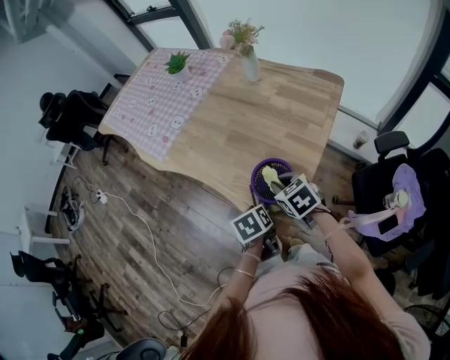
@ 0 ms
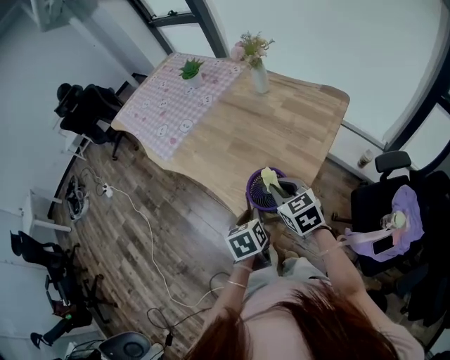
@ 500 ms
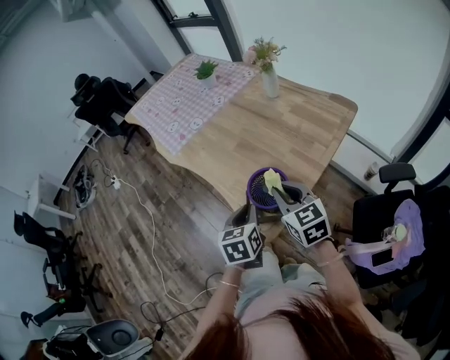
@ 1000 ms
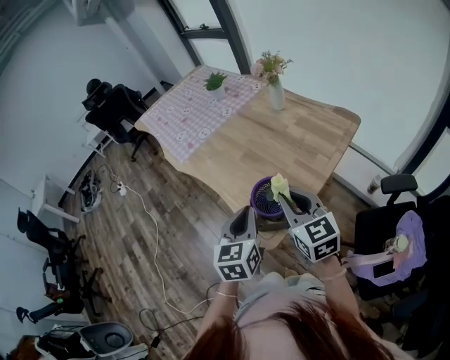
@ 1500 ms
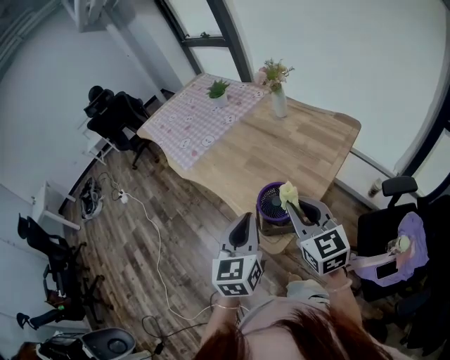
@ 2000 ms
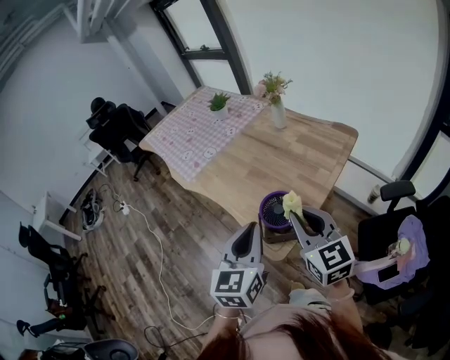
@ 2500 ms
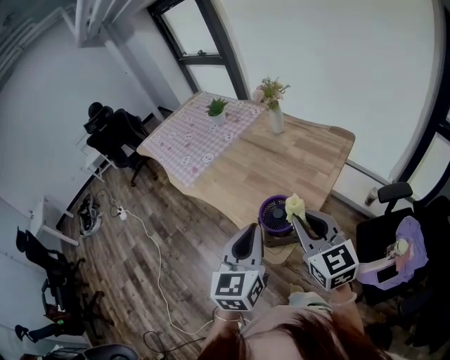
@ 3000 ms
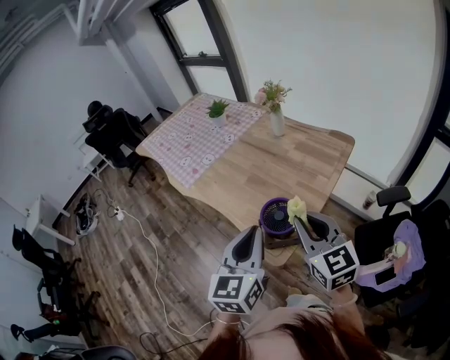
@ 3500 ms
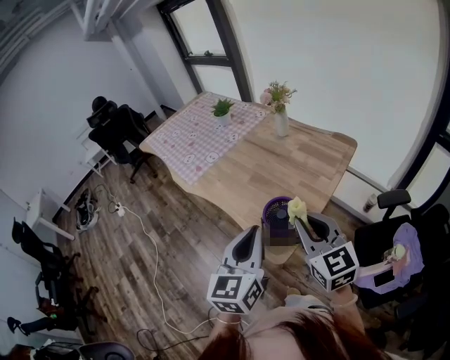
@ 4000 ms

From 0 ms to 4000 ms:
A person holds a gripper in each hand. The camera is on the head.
From 0 ms to 2000 ms: The right gripper heads upward and backward, covering some 20 cm, and tilts its fingers about 40 degrees upward. Meanwhile the left gripper heads upward, covering approximately 25 cm, tips its fingers upward by some 40 degrees, and closes up.
From 2000 ms to 4000 ms: Both grippers travel together upward, roughly 5 cm.

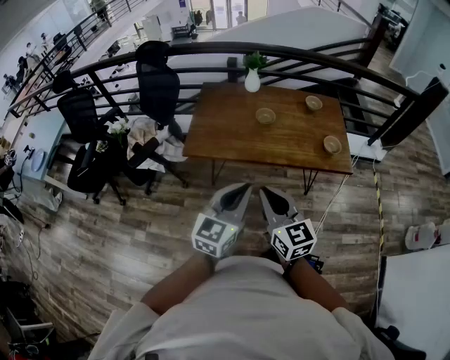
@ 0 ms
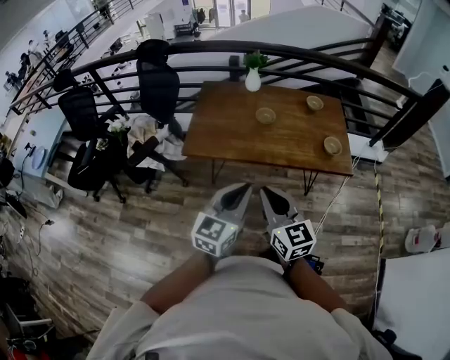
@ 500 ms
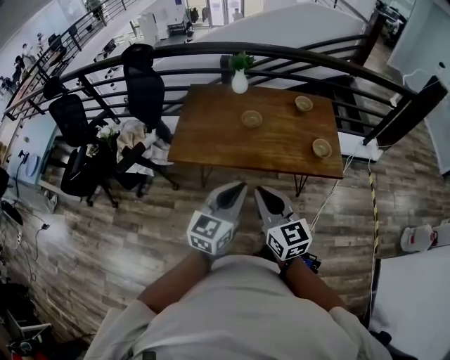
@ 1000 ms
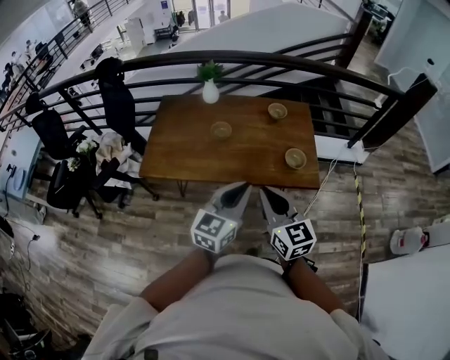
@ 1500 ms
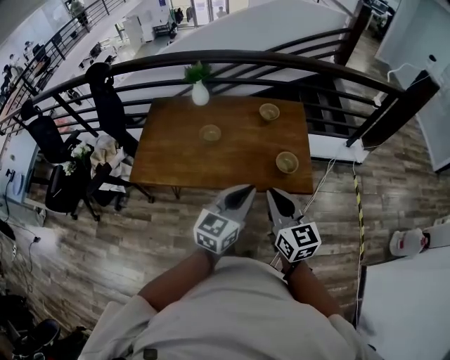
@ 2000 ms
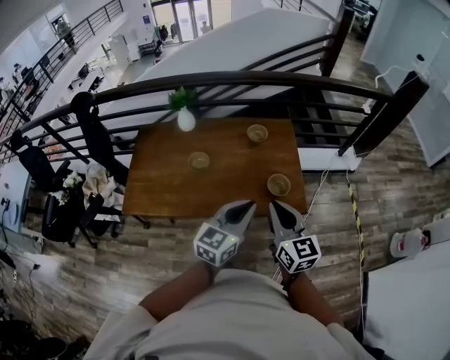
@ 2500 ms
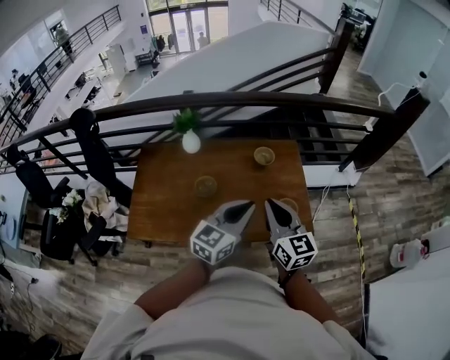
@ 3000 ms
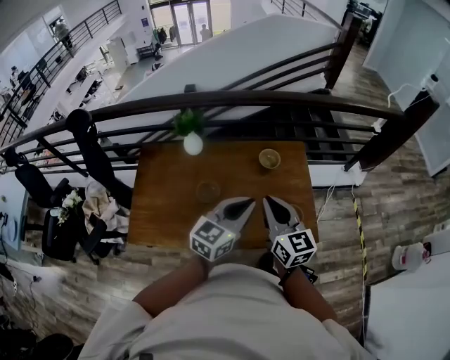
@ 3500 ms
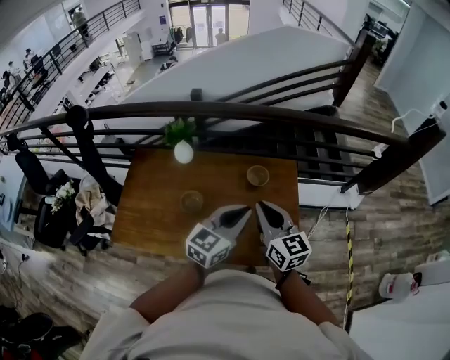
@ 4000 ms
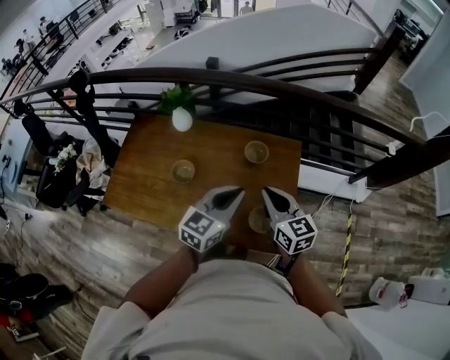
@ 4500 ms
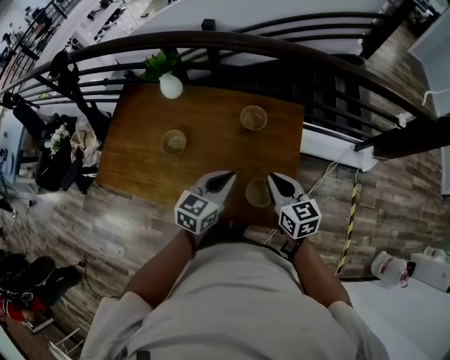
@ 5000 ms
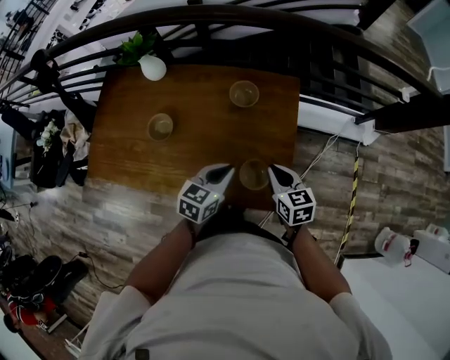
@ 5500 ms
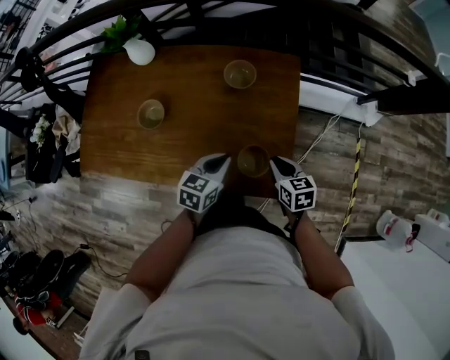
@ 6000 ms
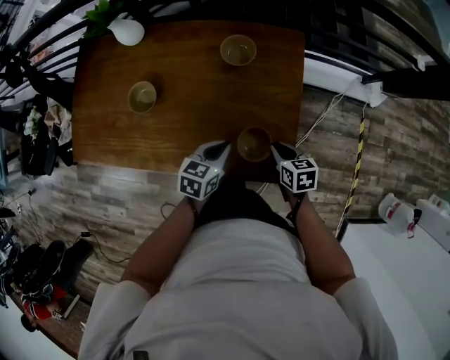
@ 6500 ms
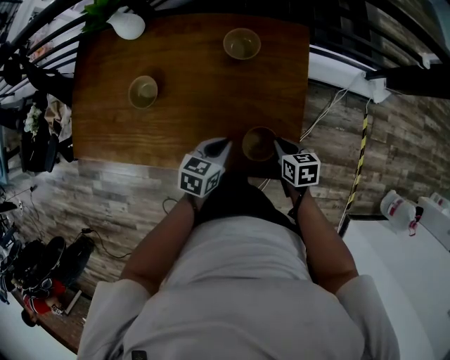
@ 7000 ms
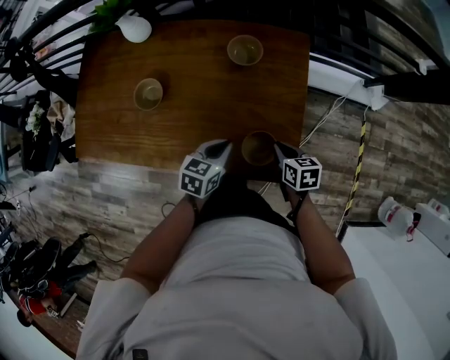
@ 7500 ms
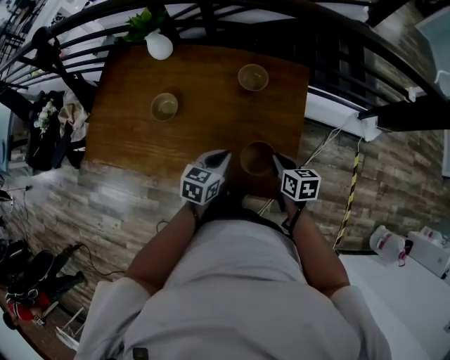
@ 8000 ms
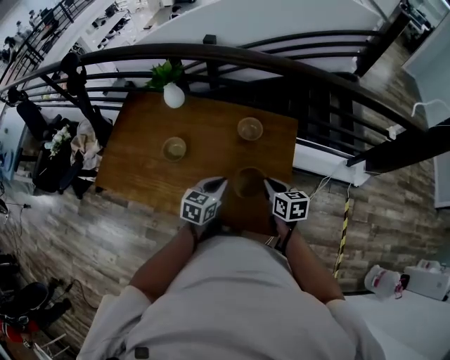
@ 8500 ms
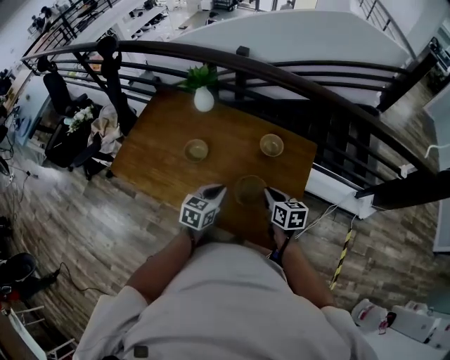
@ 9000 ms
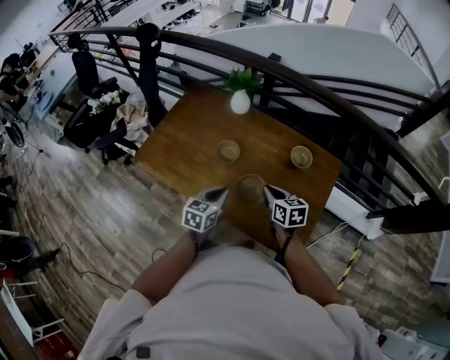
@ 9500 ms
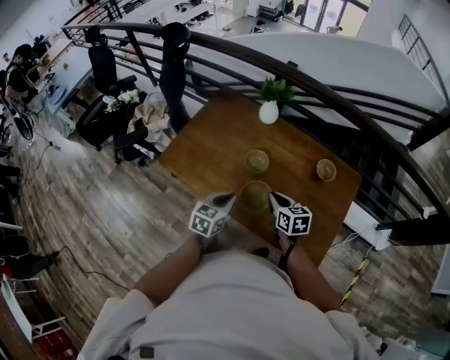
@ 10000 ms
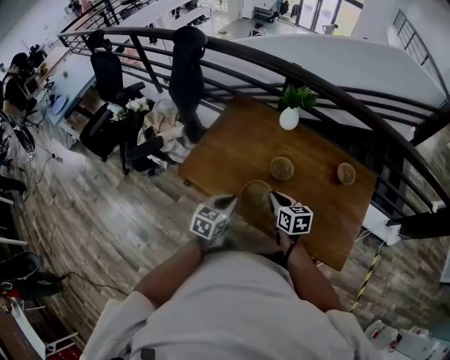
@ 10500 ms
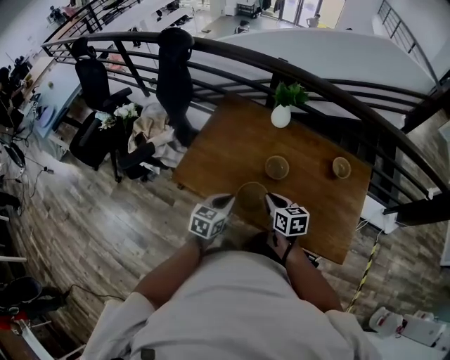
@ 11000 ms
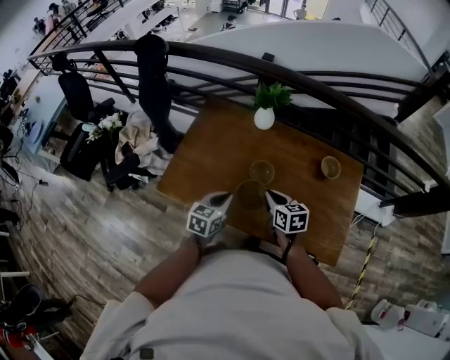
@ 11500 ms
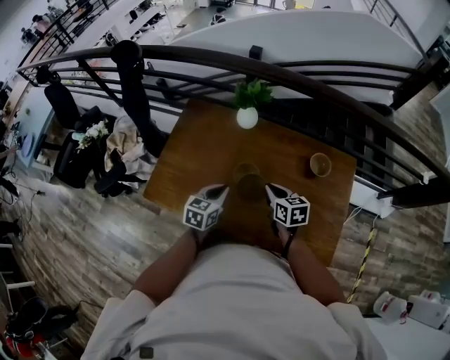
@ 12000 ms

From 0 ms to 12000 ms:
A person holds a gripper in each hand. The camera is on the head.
From 0 ms to 2000 ms: Both grippers move to the right and forward, roughly 40 cm.
From 2000 ms to 4000 ms: Both grippers travel together forward, about 30 cm.
From 4000 ms to 6000 ms: The right gripper moves downward and to the right, approximately 40 cm, and tilts its fingers approximately 40 degrees downward; the left gripper travels downward by about 30 cm, and rotates some 30 degrees.
From 6000 ms to 8000 ms: The right gripper goes downward and returns, approximately 10 cm each way.
From 8000 ms to 10000 ms: The left gripper shifts about 30 cm to the left, and changes its angle by roughly 20 degrees, while the right gripper goes roughly 35 cm to the left and upward, and changes its angle by about 30 degrees.
From 10000 ms to 12000 ms: Both grippers travel together forward, about 15 cm. The right gripper reaches roughly 15 cm to the left, then returns. The left gripper moves approximately 15 cm to the left and comes back.

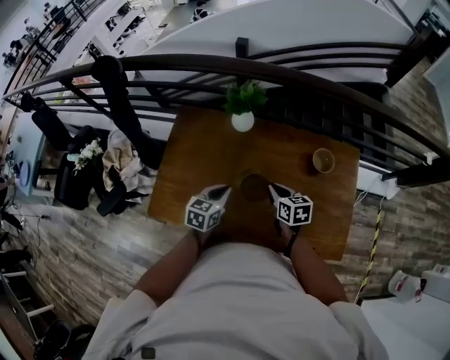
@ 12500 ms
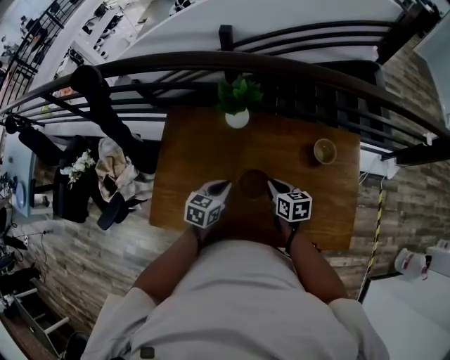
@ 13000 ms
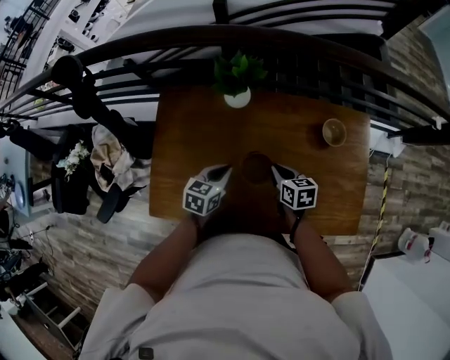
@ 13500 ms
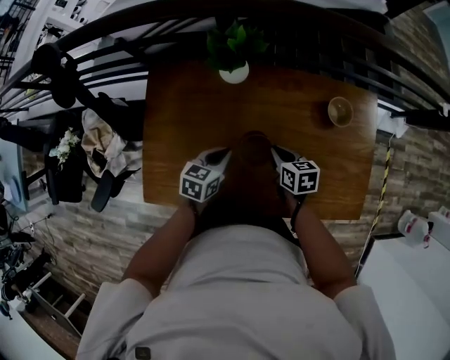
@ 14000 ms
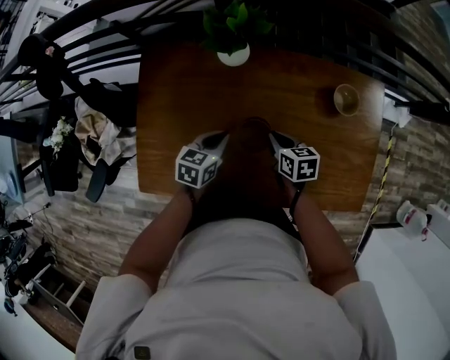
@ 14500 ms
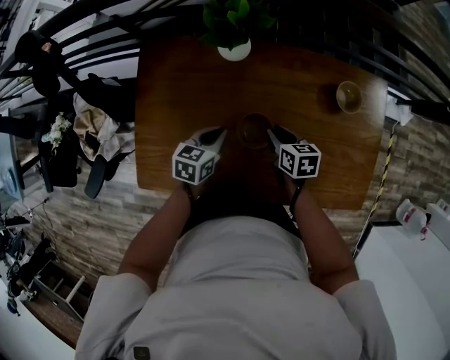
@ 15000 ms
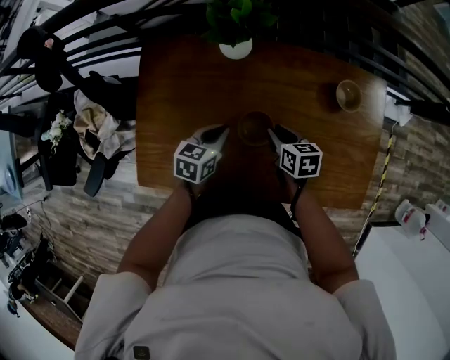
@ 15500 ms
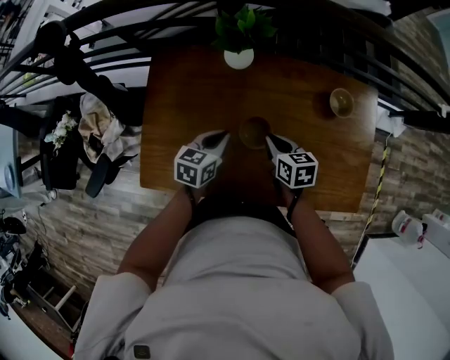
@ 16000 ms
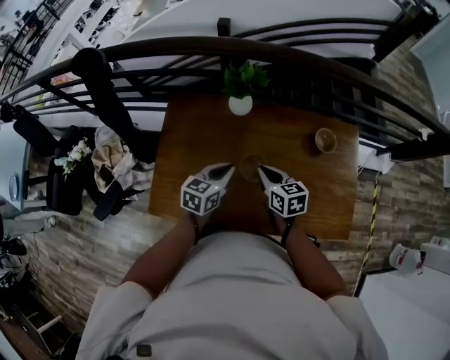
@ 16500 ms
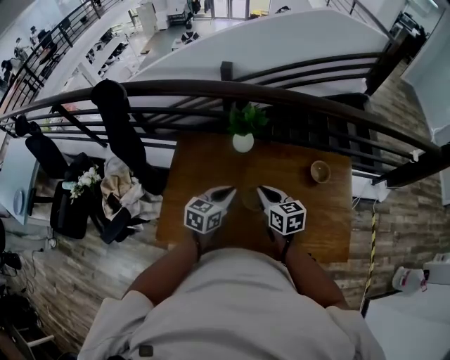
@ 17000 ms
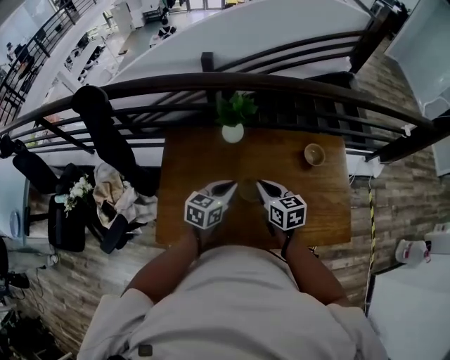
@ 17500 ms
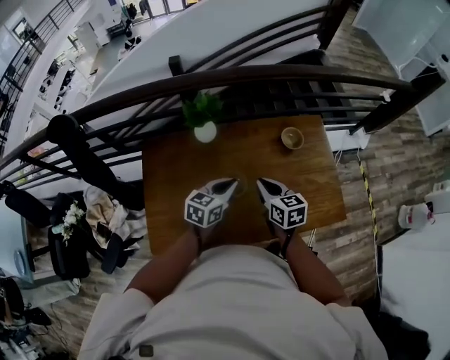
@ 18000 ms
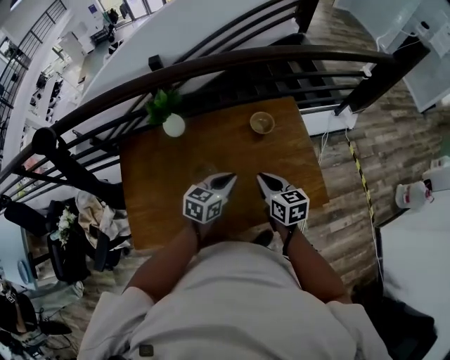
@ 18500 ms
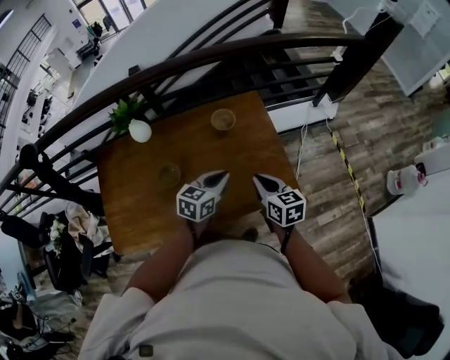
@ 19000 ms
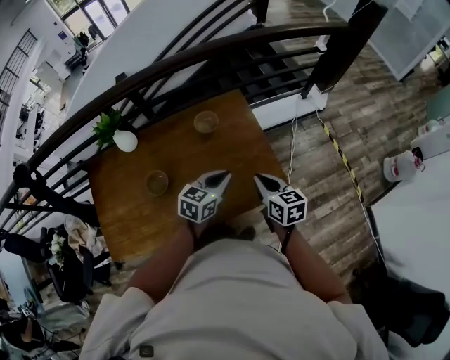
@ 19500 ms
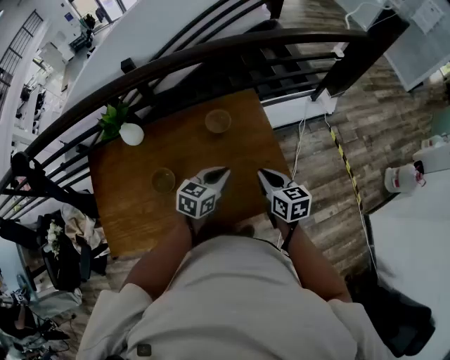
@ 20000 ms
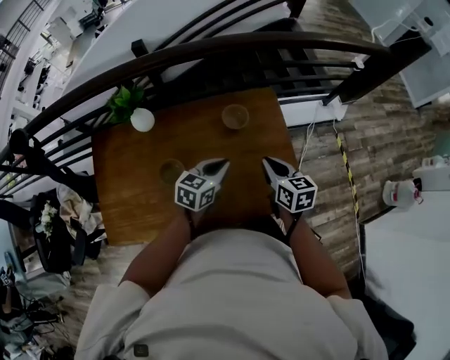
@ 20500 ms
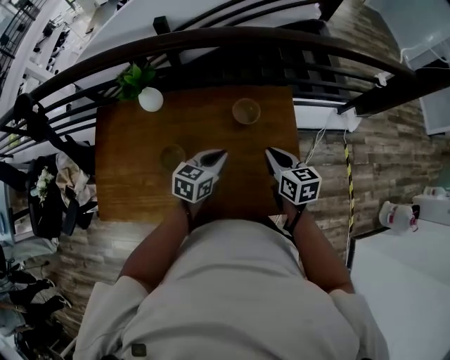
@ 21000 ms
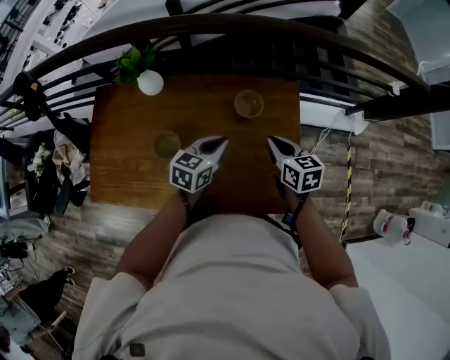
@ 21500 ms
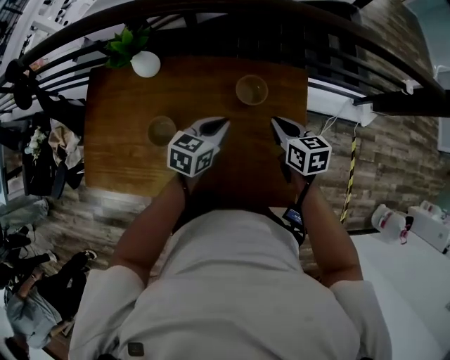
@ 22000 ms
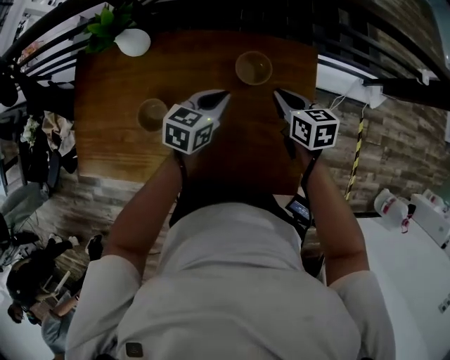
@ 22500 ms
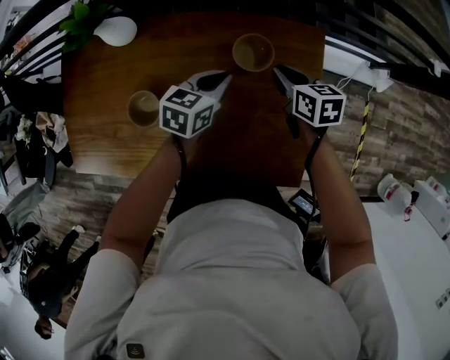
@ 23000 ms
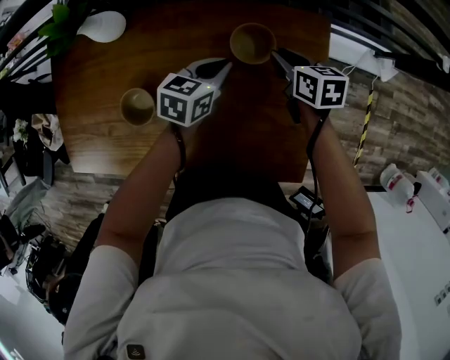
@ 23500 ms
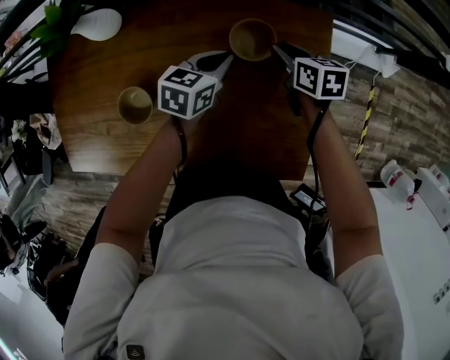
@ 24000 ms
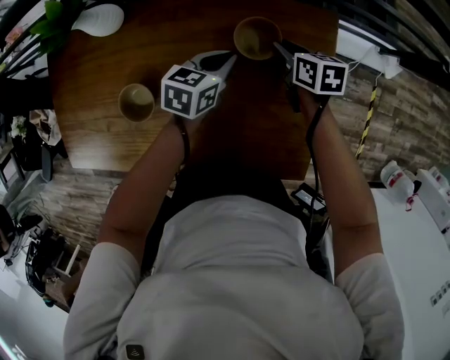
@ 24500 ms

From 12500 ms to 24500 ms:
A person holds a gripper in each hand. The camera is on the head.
From 12500 ms to 14500 ms: The right gripper goes roughly 15 cm downward. The left gripper shifts some 15 cm downward and forward.
From 14500 ms to 16500 ms: The two grippers go some 15 cm upward. The right gripper opens, then closes again.
From 16500 ms to 18500 ms: Both grippers travel together to the right, about 20 cm. The left gripper turns by some 20 degrees. Meanwhile the right gripper rotates roughly 20 degrees.
From 18500 ms to 20500 ms: The two grippers go some 15 cm to the right and forward.
From 20500 ms to 22500 ms: Both grippers move forward and downward, some 20 cm. The right gripper turns by about 20 degrees.
From 22500 ms to 24500 ms: Both grippers move downward and forward, some 15 cm.
